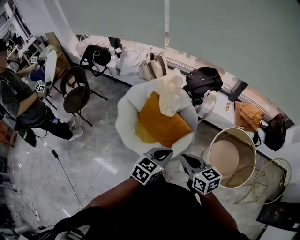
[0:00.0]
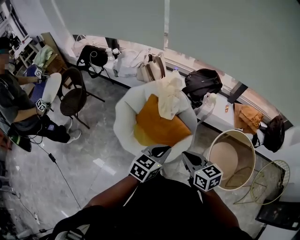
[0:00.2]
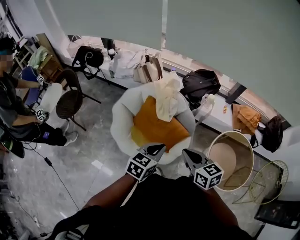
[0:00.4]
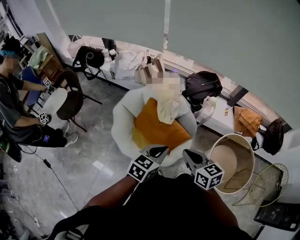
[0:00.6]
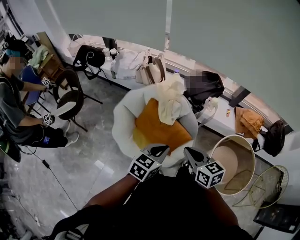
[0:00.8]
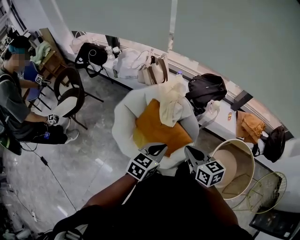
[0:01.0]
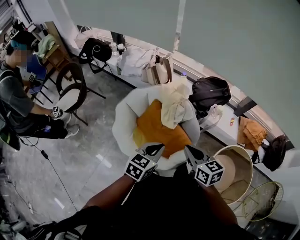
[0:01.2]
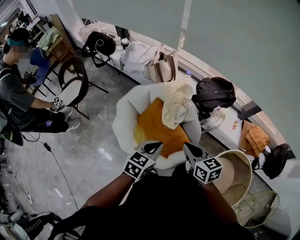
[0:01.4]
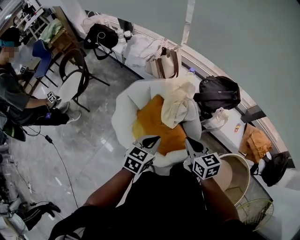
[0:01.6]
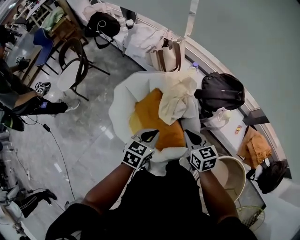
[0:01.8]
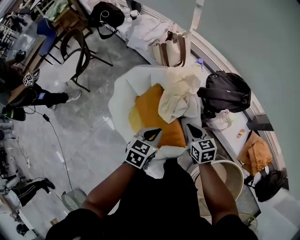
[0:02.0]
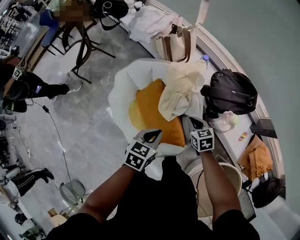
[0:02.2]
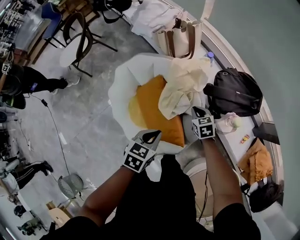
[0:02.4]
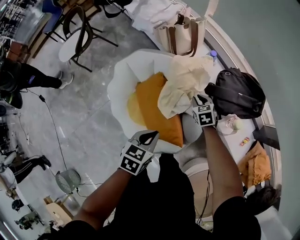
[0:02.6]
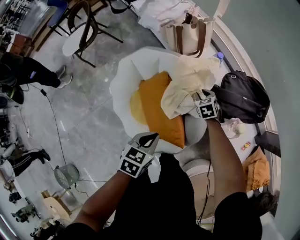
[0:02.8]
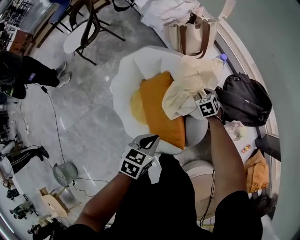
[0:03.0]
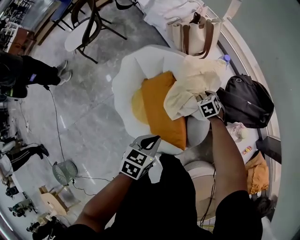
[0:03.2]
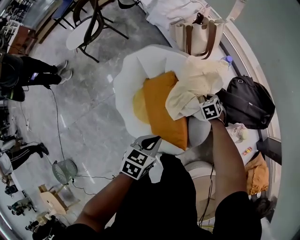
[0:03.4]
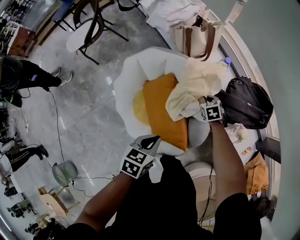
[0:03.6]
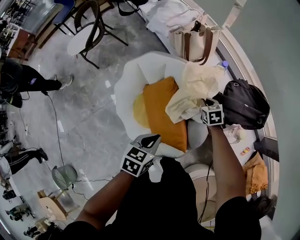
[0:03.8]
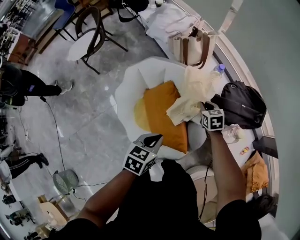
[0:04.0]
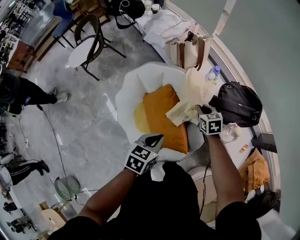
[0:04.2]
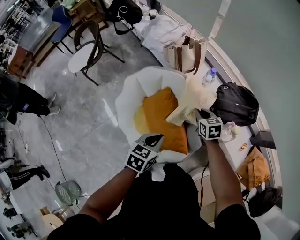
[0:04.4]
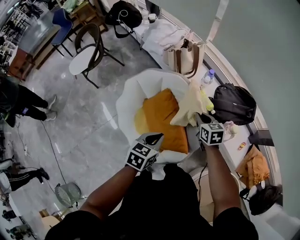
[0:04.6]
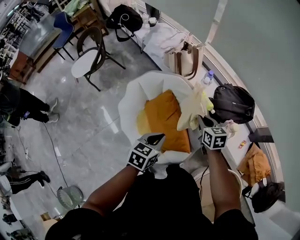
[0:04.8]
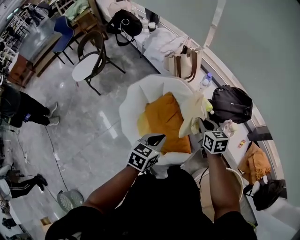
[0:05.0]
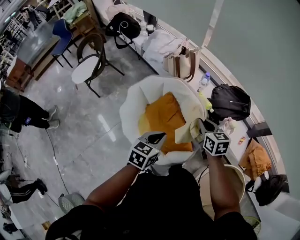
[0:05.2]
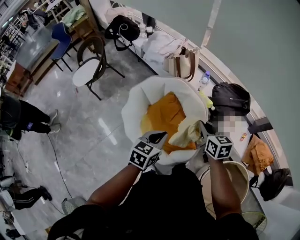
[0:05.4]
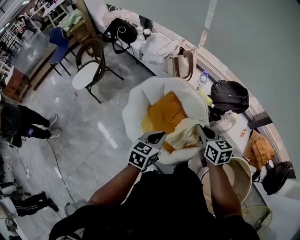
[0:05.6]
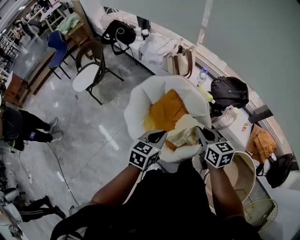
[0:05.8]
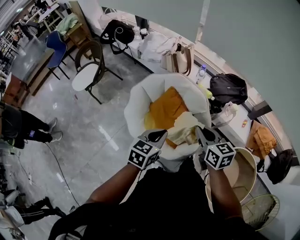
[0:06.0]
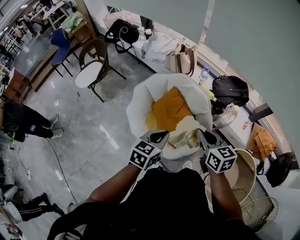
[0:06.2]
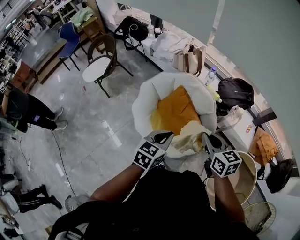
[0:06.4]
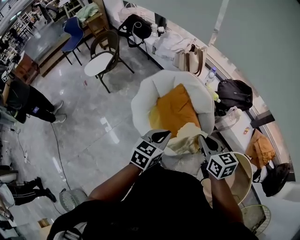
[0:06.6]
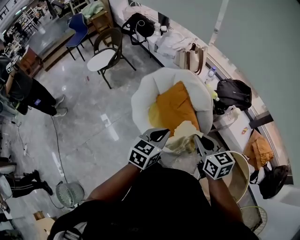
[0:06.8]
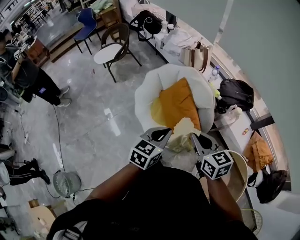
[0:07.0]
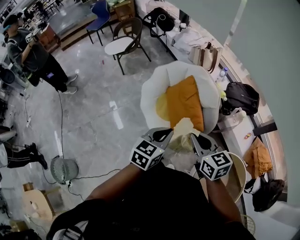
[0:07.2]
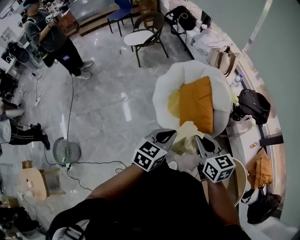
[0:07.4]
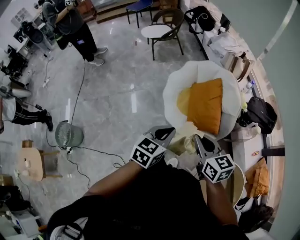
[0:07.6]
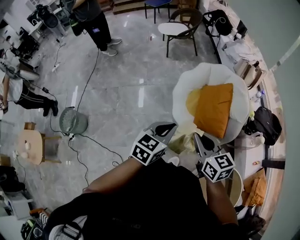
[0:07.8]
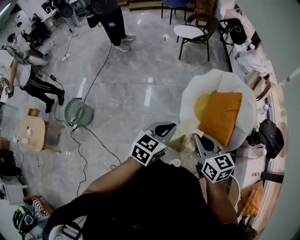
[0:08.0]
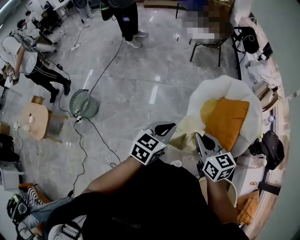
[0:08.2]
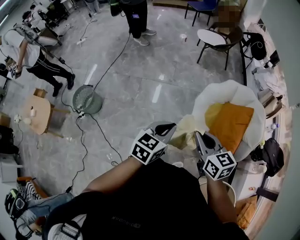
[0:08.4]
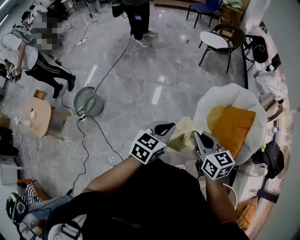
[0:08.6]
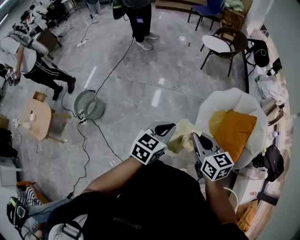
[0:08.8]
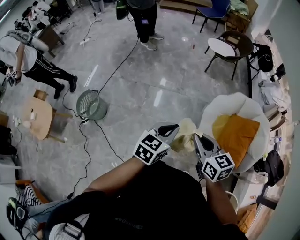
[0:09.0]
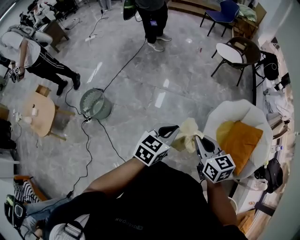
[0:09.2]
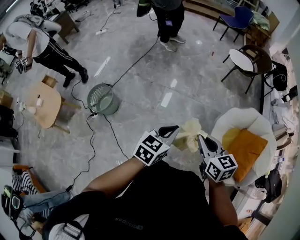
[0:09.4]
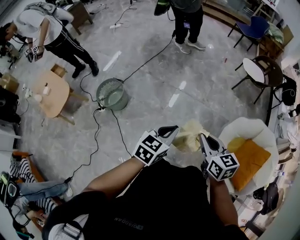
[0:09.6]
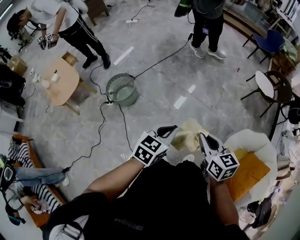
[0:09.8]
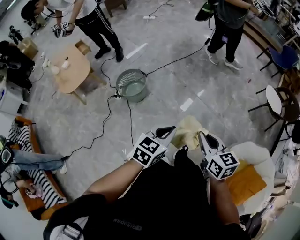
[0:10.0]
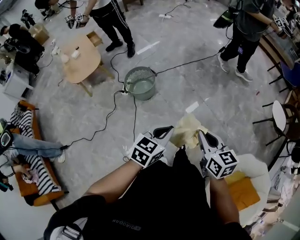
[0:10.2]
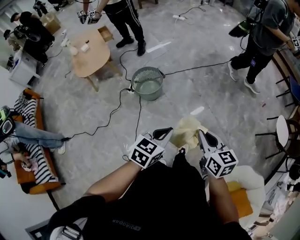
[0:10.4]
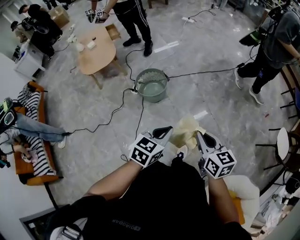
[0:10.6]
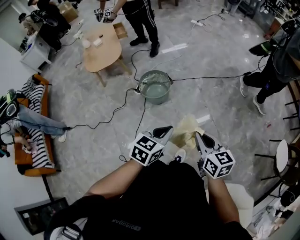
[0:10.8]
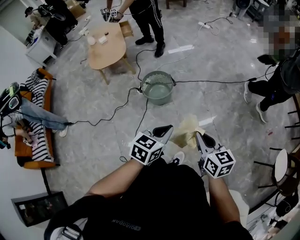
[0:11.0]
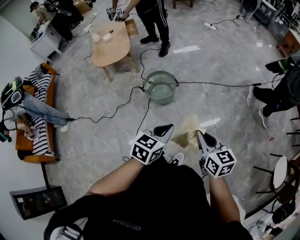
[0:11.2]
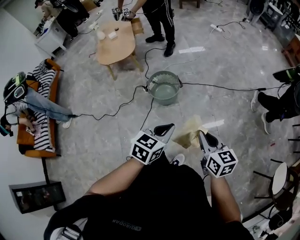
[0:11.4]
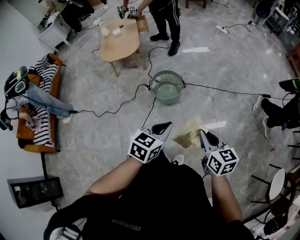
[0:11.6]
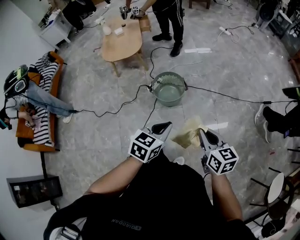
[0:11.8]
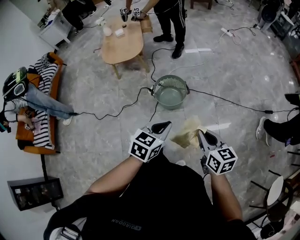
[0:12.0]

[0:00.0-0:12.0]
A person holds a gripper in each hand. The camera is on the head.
0:00.0 to 0:01.6: The grippers both shift forward by roughly 30 cm. The left gripper turns by approximately 20 degrees.
0:01.6 to 0:03.0: The right gripper goes approximately 50 cm downward and forward, tilts its fingers approximately 30 degrees downward, and opens. The left gripper is displaced downward and to the right by some 15 cm, and turns by about 30 degrees.
0:03.0 to 0:04.4: The left gripper heads upward, covering some 10 cm; the right gripper travels upward and backward by about 20 cm, changes its angle by some 30 degrees, and closes up.
0:04.4 to 0:06.0: The left gripper heads backward, upward and to the left, covering about 20 cm, while the right gripper moves backward and upward, approximately 35 cm, and changes its angle by approximately 20 degrees.
0:06.0 to 0:07.6: The left gripper shifts by some 25 cm, and changes its angle by about 30 degrees. Meanwhile the right gripper moves some 25 cm, and changes its angle by approximately 40 degrees.
0:07.6 to 0:09.0: Both grippers travel together to the left, roughly 35 cm. The left gripper swivels roughly 20 degrees. The right gripper swivels approximately 30 degrees.
0:09.0 to 0:10.4: The left gripper moves roughly 40 cm, and turns by about 50 degrees; the right gripper moves about 40 cm, and changes its angle by approximately 40 degrees.
0:10.4 to 0:12.0: The right gripper ends up roughly 25 cm from where it was, and turns by roughly 30 degrees. The left gripper moves approximately 20 cm, and swivels about 30 degrees.

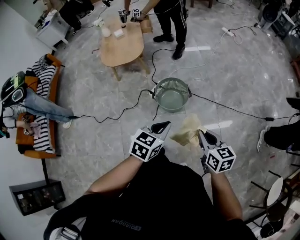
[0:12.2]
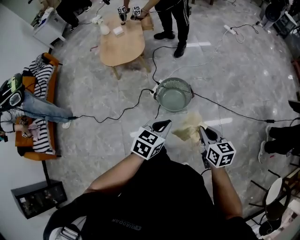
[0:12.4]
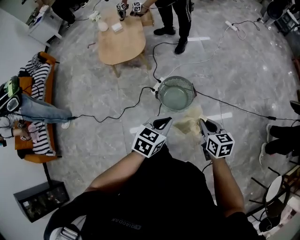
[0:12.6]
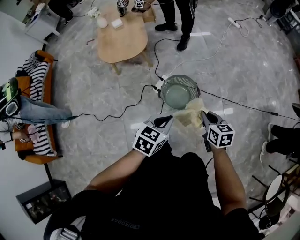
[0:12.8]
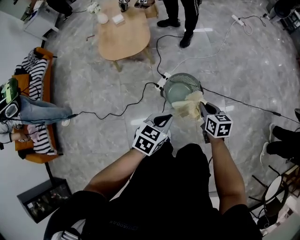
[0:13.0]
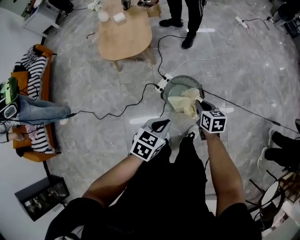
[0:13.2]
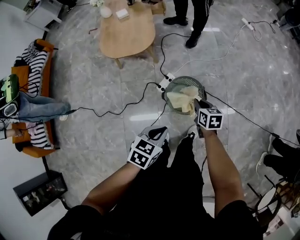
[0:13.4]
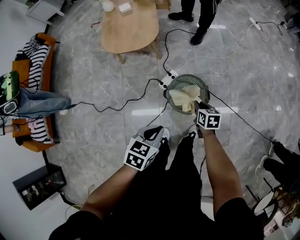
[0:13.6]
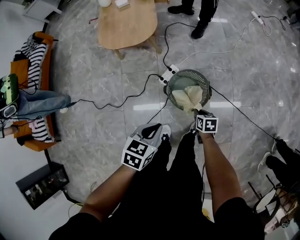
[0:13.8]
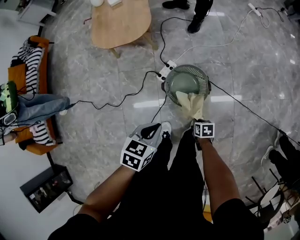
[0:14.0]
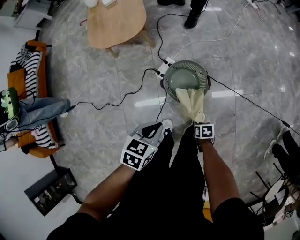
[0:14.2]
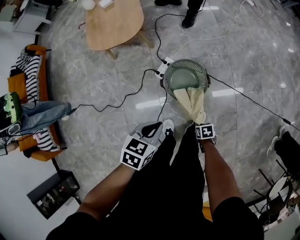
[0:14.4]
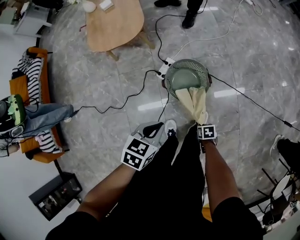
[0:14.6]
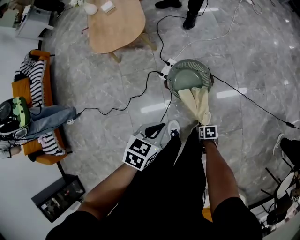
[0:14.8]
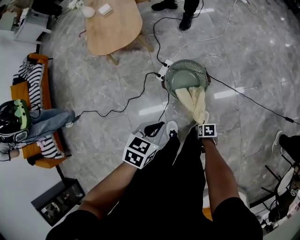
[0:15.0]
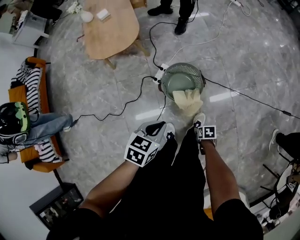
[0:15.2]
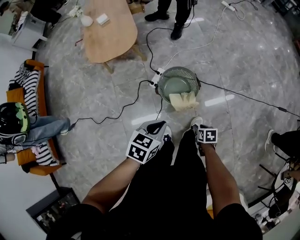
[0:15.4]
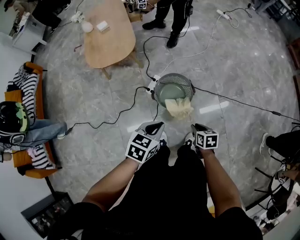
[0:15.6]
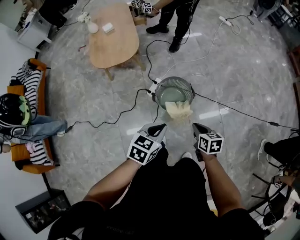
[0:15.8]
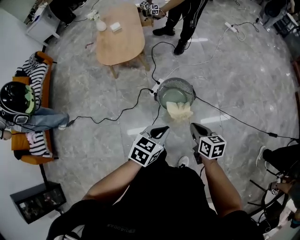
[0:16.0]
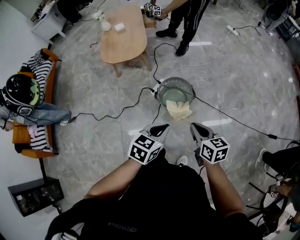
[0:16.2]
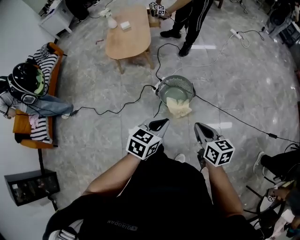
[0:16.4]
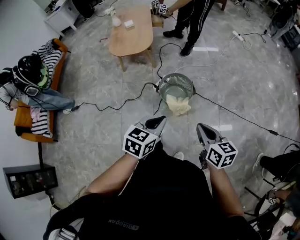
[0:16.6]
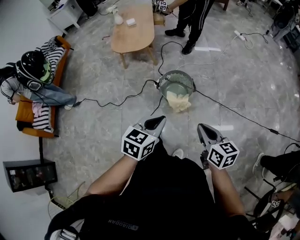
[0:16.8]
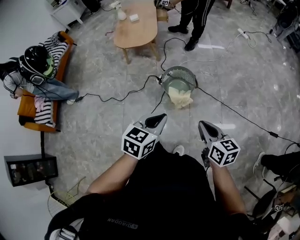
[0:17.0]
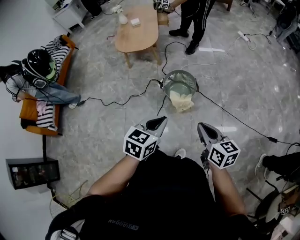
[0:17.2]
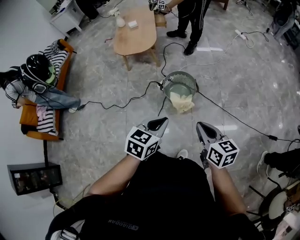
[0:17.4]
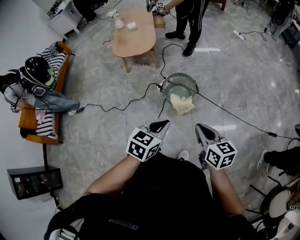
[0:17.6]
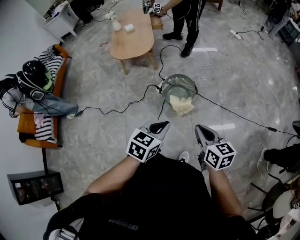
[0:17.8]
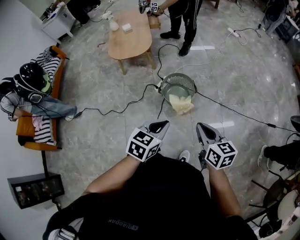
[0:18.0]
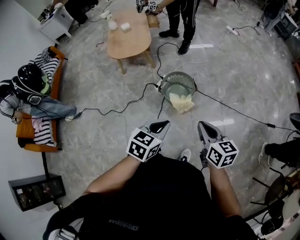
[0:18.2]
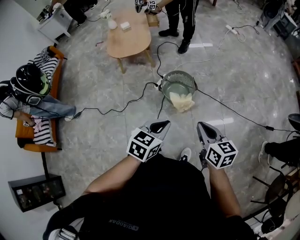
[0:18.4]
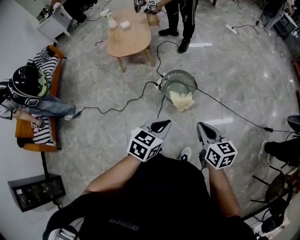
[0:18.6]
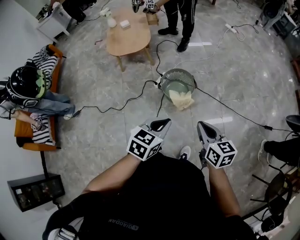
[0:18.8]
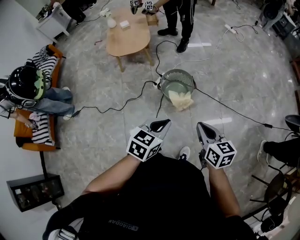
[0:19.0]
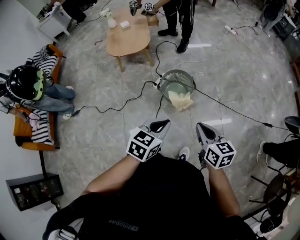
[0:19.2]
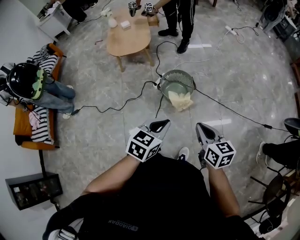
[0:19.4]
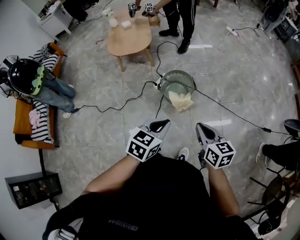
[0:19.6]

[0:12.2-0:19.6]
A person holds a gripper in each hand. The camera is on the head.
0:12.2 to 0:13.6: The left gripper moves to the left, forward and downward, approximately 25 cm; the right gripper shifts roughly 40 cm forward, downward and to the left, and rotates approximately 20 degrees.
0:13.6 to 0:15.2: The right gripper ends up approximately 30 cm from where it was, changes its angle by approximately 30 degrees, and opens.
0:15.2 to 0:16.6: The right gripper is displaced upward by approximately 40 cm, angles its fingers upward, by some 50 degrees, and closes up, while the left gripper moves approximately 20 cm.
0:16.6 to 0:18.2: The right gripper shifts by approximately 5 cm.
0:18.2 to 0:19.6: The grippers move only a little.

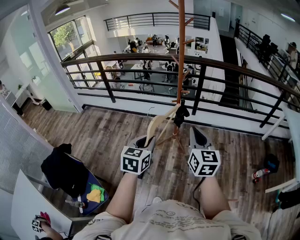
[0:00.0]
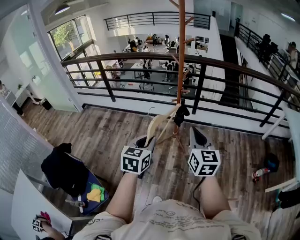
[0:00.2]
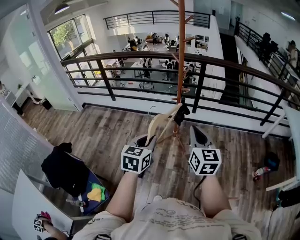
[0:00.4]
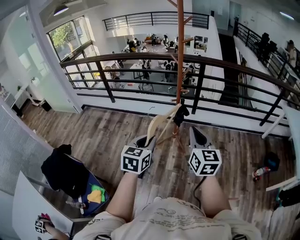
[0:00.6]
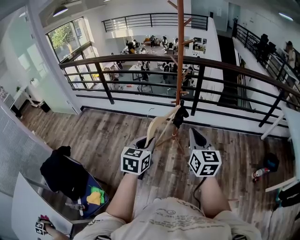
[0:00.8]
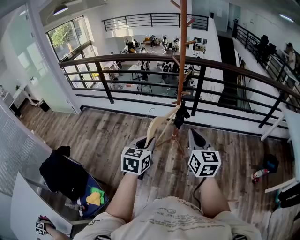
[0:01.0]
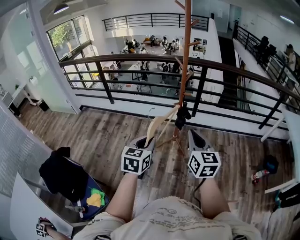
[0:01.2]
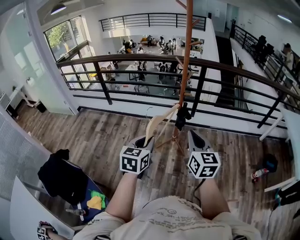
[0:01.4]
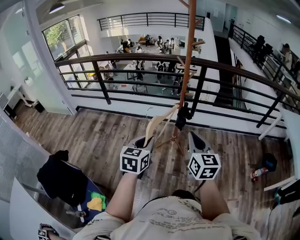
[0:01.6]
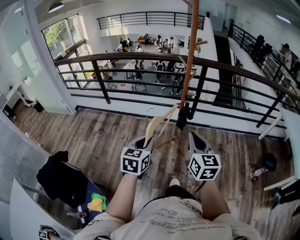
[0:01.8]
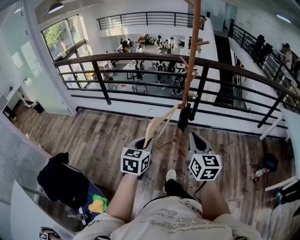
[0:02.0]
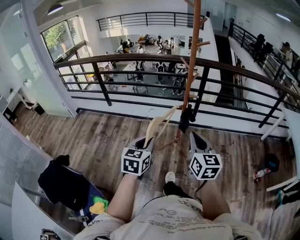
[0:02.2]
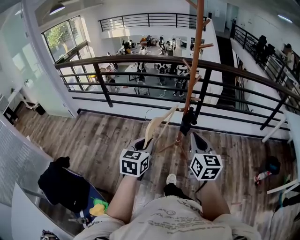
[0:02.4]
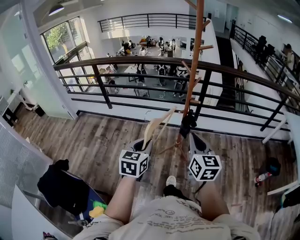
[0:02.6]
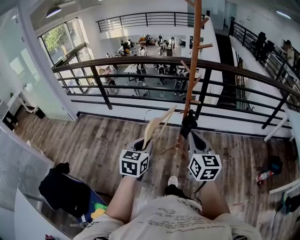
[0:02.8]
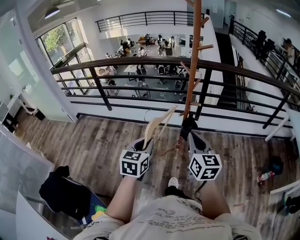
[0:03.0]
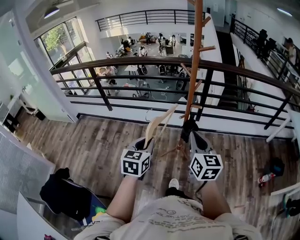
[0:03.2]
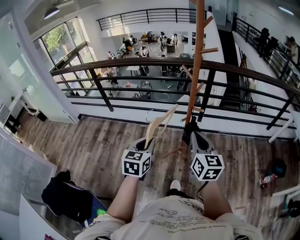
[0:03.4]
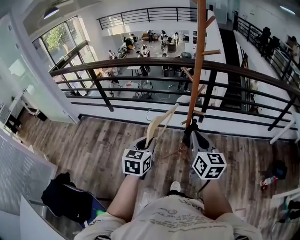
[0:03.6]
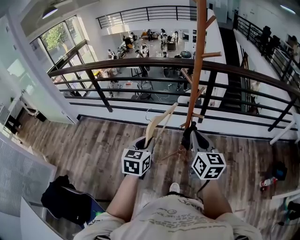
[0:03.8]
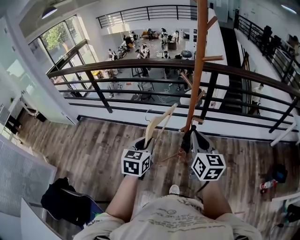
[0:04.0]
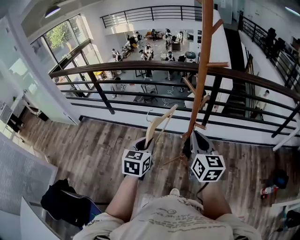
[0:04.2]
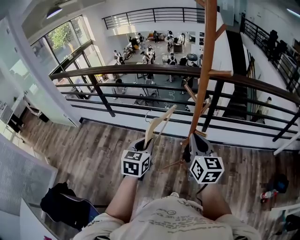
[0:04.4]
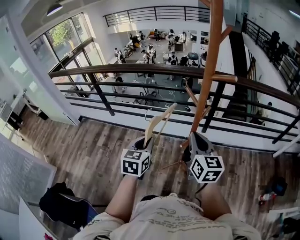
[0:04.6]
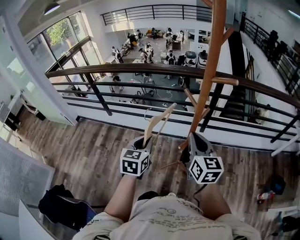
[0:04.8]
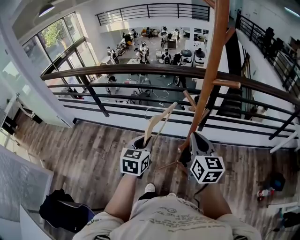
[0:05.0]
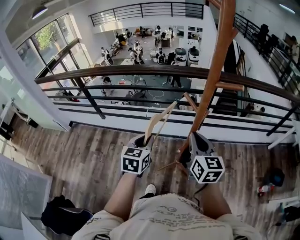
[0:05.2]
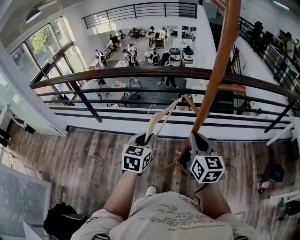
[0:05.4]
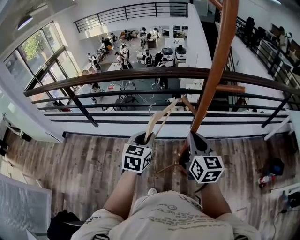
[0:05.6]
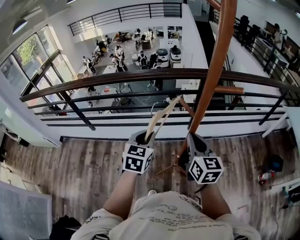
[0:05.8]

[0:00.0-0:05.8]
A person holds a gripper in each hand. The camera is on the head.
0:00.0 to 0:01.4: The two grippers go approximately 5 cm to the left.
0:01.4 to 0:02.8: The right gripper moves forward, roughly 10 cm; the left gripper moves forward and to the left, about 10 cm.
0:02.8 to 0:04.4: Both grippers move forward, about 25 cm.
0:04.4 to 0:05.8: The left gripper heads forward, covering some 15 cm. The right gripper moves forward, some 10 cm.
